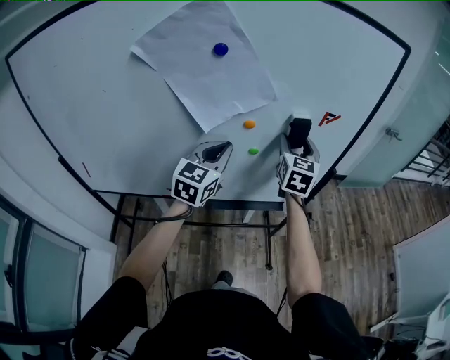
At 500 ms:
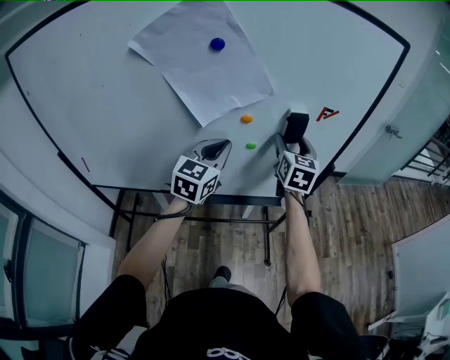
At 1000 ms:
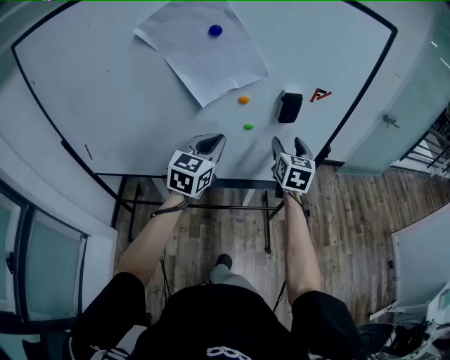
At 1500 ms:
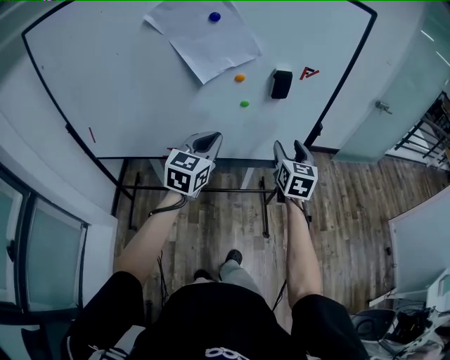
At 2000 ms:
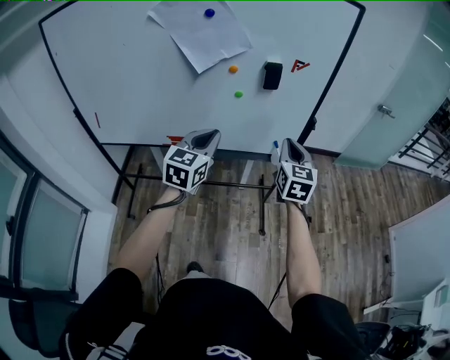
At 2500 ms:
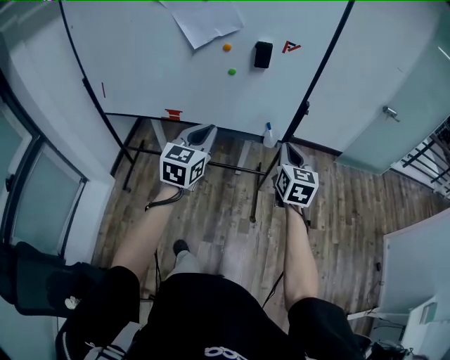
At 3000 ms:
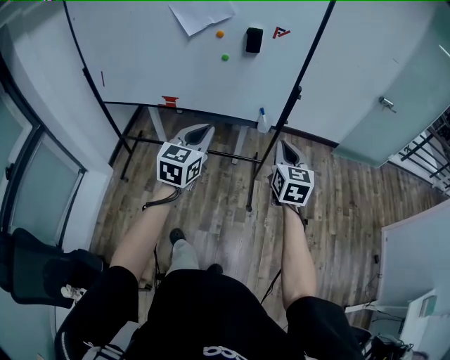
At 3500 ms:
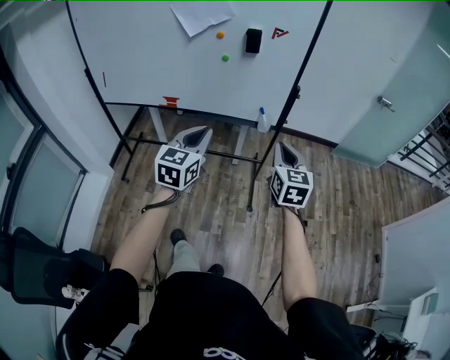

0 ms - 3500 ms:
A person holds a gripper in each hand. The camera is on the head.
0 ms - 2000 ms: The grippers both shift backward and to the right by roughly 25 cm. The right gripper closes.
2000 ms - 3500 ms: The two grippers go roughly 20 cm backward and to the right.

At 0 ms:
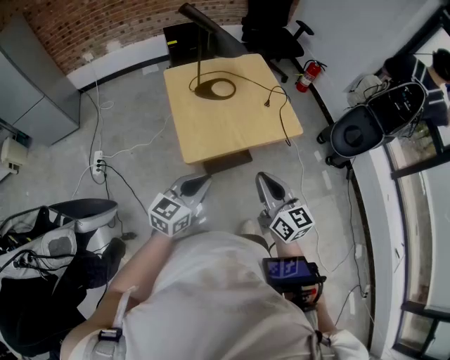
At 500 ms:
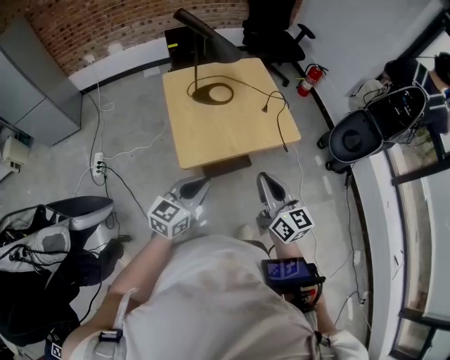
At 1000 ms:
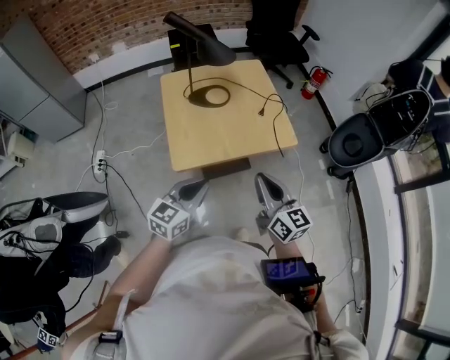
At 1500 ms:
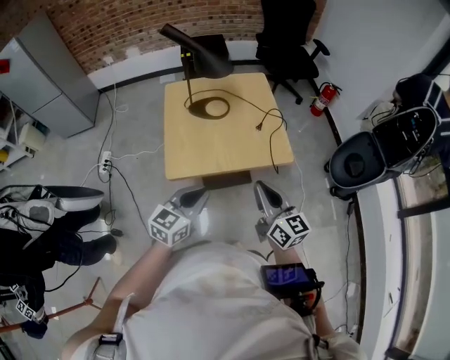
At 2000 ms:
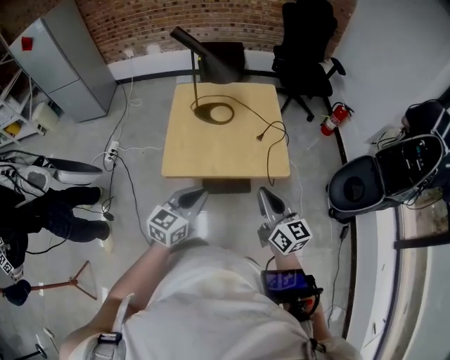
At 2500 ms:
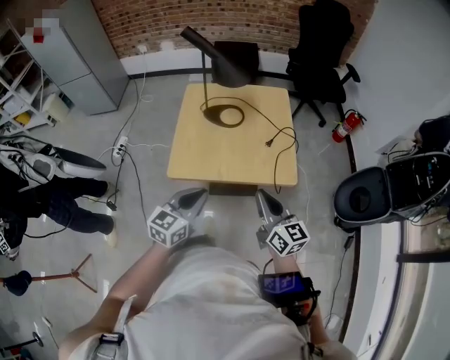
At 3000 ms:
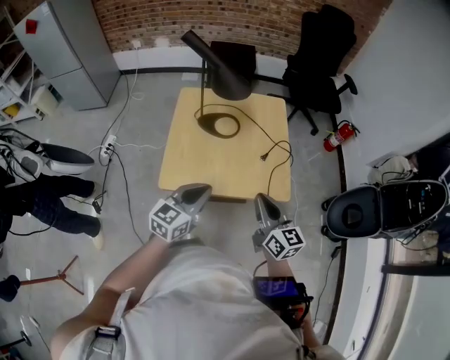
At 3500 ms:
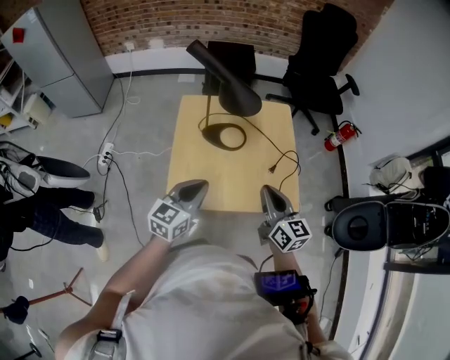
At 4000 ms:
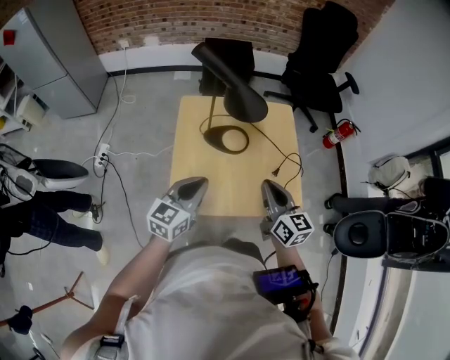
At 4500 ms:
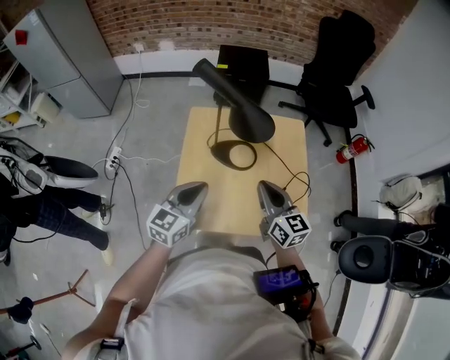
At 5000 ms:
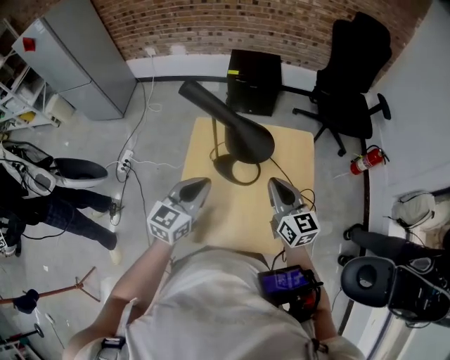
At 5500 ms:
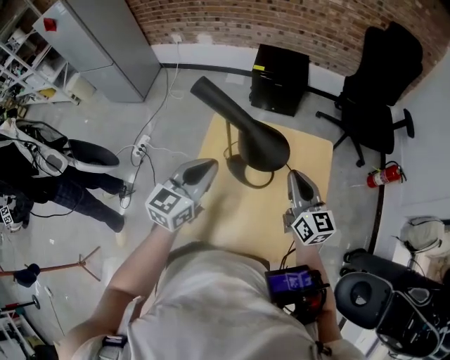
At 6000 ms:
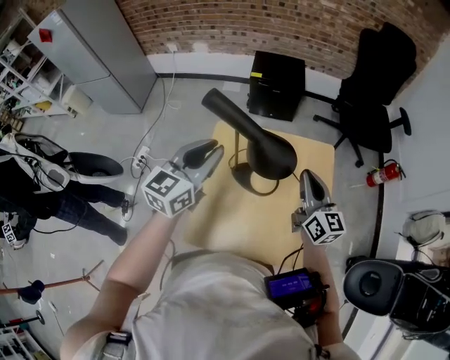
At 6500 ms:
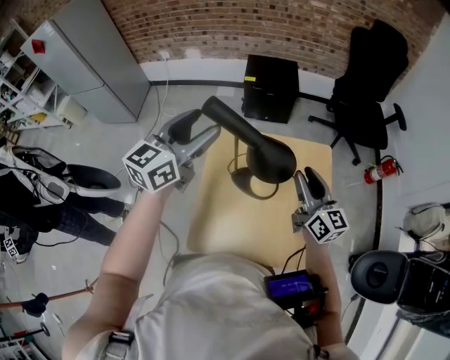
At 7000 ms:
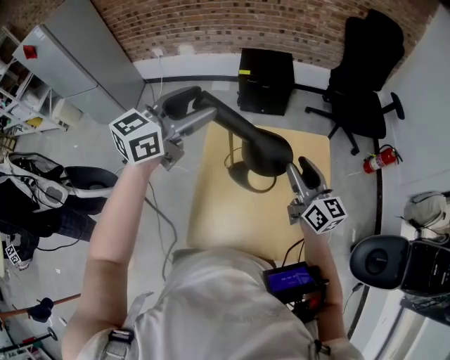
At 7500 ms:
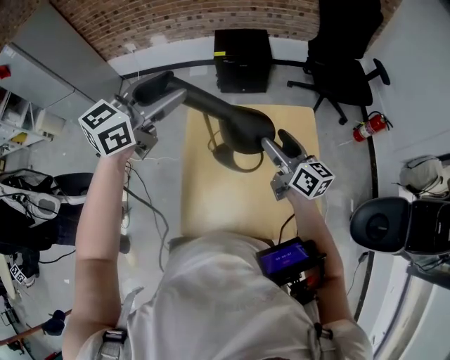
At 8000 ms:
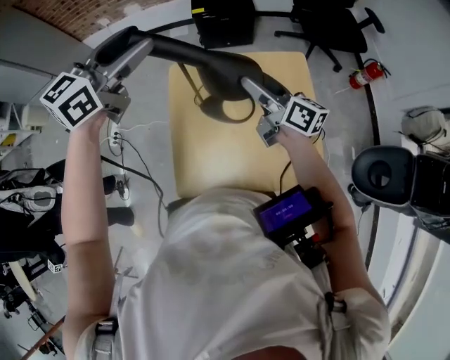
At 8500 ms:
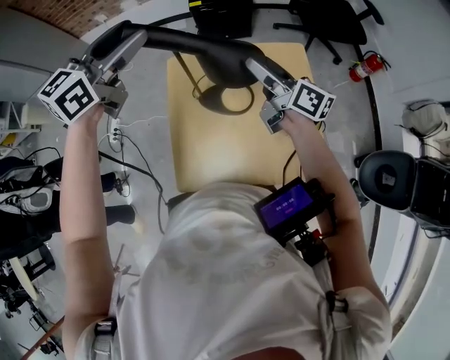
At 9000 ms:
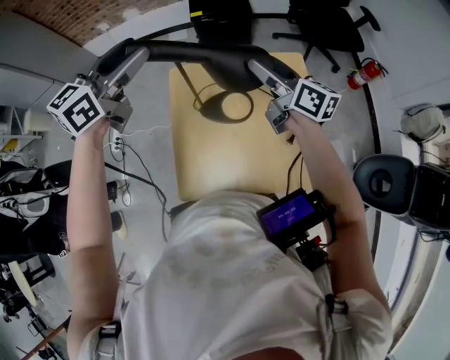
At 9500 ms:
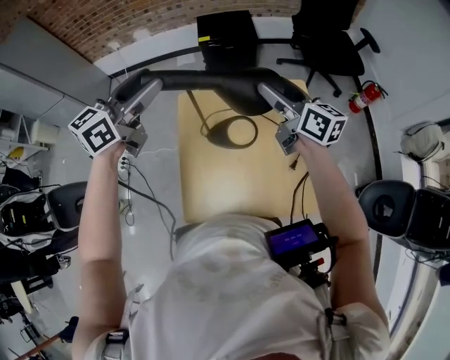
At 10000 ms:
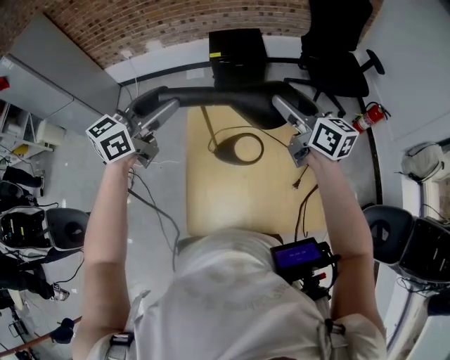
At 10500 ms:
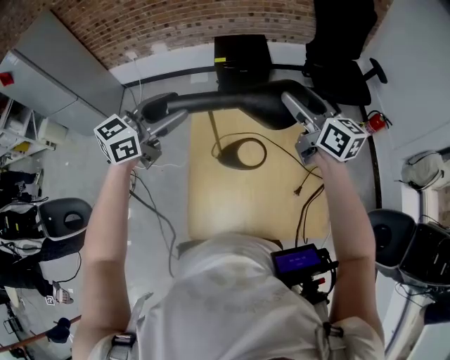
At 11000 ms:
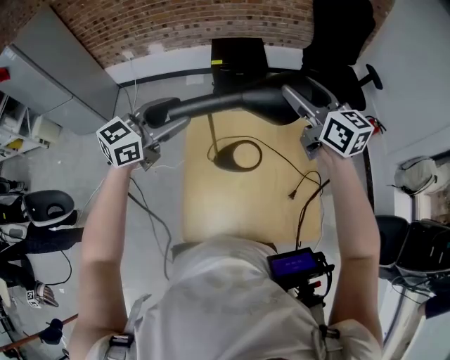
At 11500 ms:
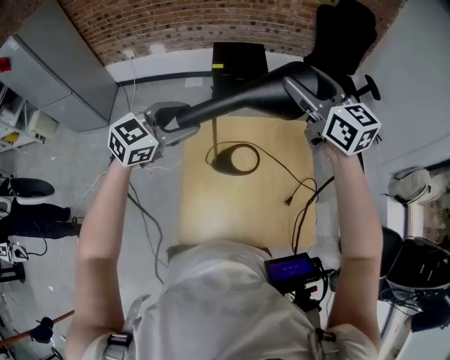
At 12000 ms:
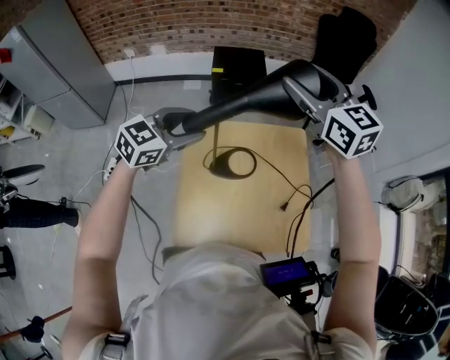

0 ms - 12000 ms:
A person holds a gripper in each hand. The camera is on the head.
0 ms - 2000 ms: The right gripper travels to the right and forward by approximately 20 cm; the left gripper moves to the right, approximately 15 cm.
2000 ms - 4000 ms: The two grippers go some 25 cm forward and to the left.
4000 ms - 6000 ms: The left gripper heads forward and upward, covering roughly 25 cm. The right gripper is displaced forward by roughly 20 cm.
6000 ms - 8000 ms: The left gripper travels upward and forward by about 15 cm, and opens its fingers; the right gripper goes some 5 cm to the left, turns by approximately 30 degrees, and opens up.
8000 ms - 10000 ms: The right gripper moves upward, about 10 cm; the left gripper ends up roughly 5 cm from where it was.
10000 ms - 12000 ms: The right gripper heads upward, covering approximately 15 cm, and rotates about 30 degrees, while the left gripper moves downward, approximately 5 cm, and changes its angle by some 20 degrees.

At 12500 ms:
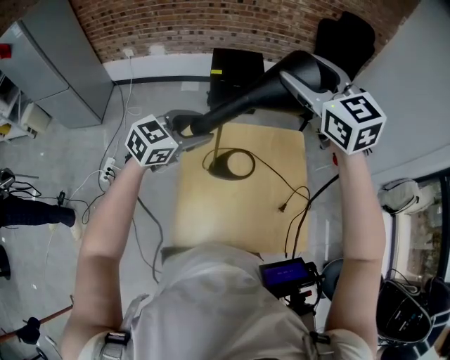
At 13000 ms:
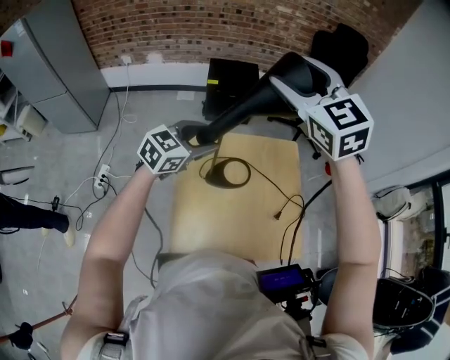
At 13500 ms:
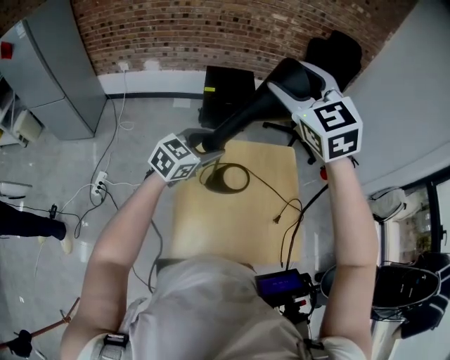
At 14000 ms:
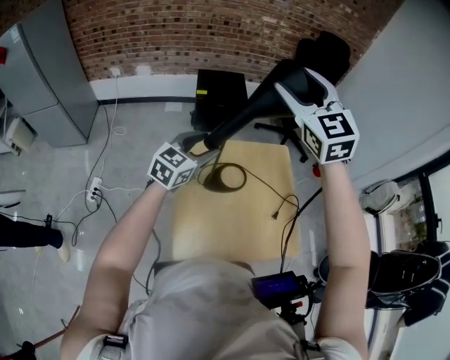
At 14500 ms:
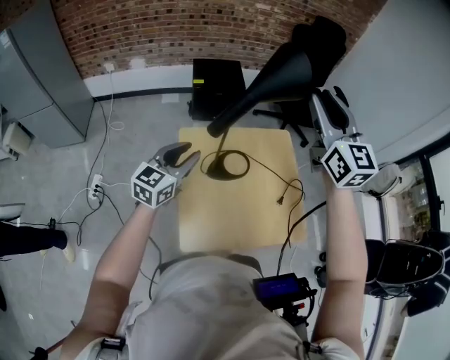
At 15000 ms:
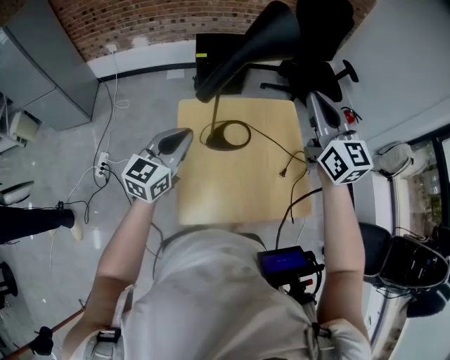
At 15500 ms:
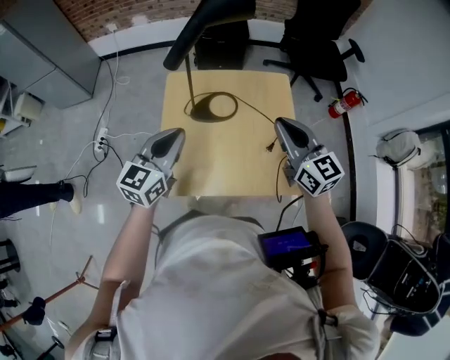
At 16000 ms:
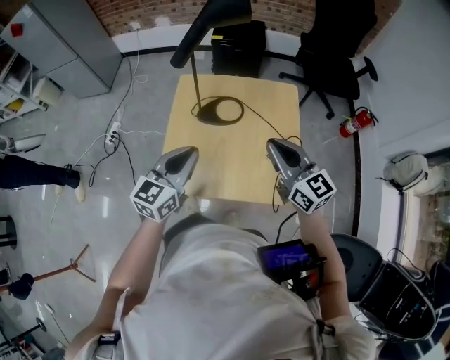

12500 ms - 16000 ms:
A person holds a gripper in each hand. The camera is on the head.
12500 ms - 14500 ms: The right gripper moves to the right and backward, approximately 10 cm, swivels roughly 30 degrees, and closes; the left gripper travels backward by some 5 cm, and changes its angle by some 20 degrees.
14500 ms - 16000 ms: The right gripper heads downward and backward, covering some 30 cm, rotates roughly 40 degrees, and closes. Meanwhile the left gripper heads backward and to the right, covering approximately 25 cm, and closes up.

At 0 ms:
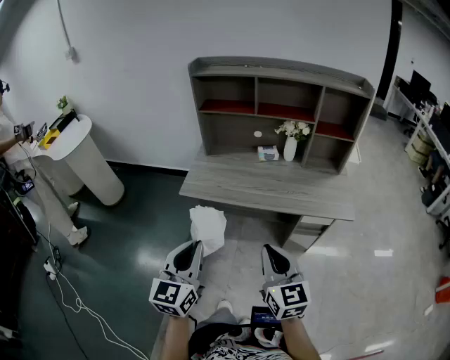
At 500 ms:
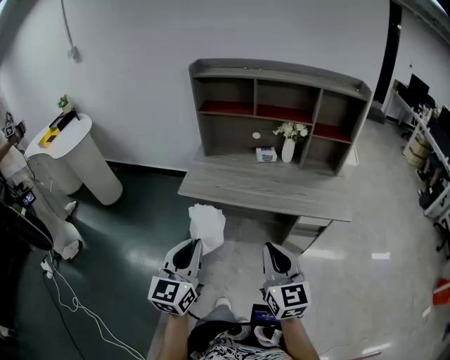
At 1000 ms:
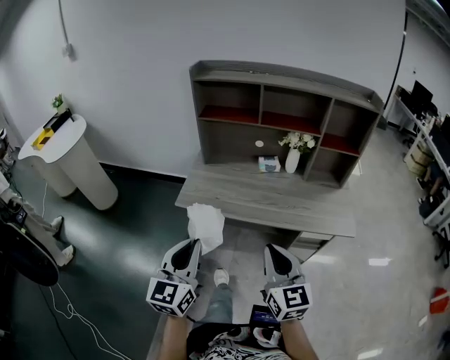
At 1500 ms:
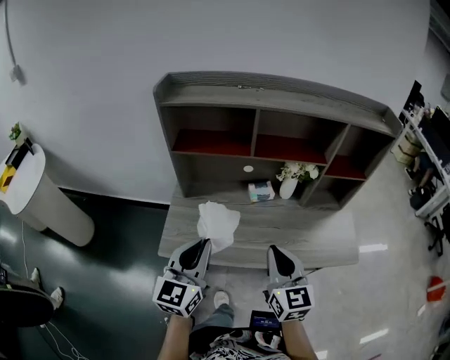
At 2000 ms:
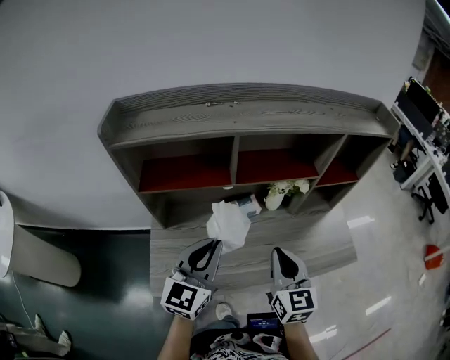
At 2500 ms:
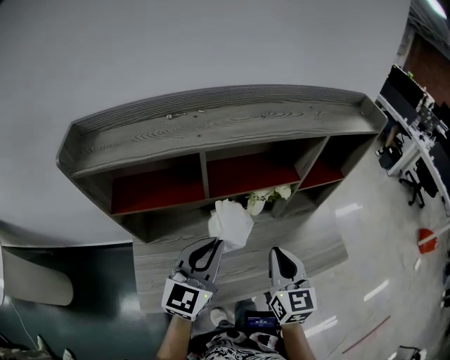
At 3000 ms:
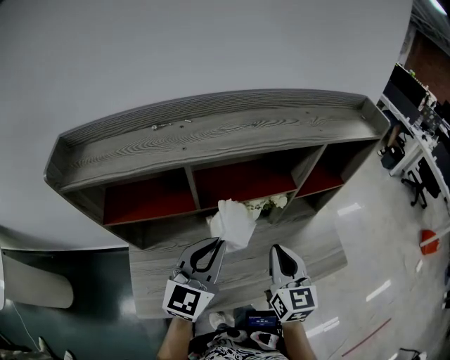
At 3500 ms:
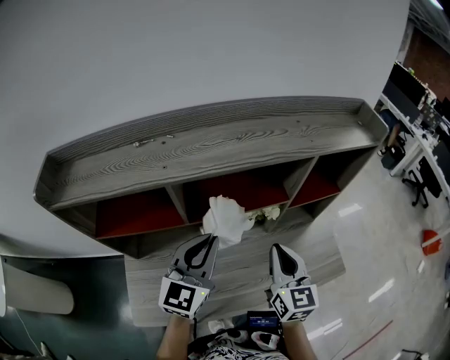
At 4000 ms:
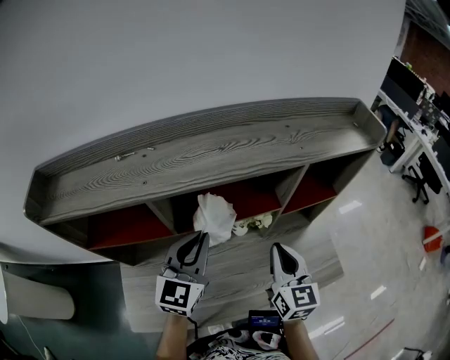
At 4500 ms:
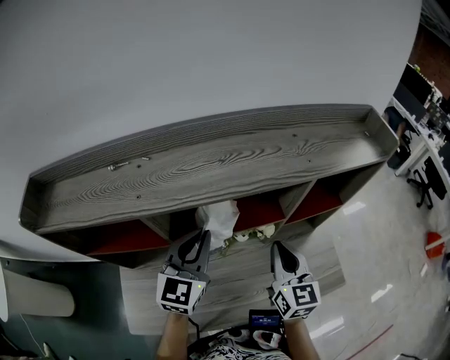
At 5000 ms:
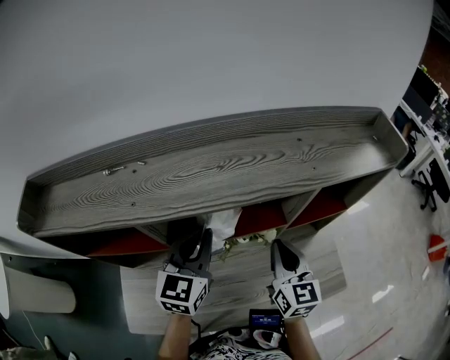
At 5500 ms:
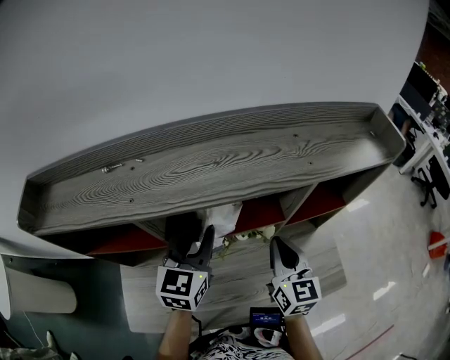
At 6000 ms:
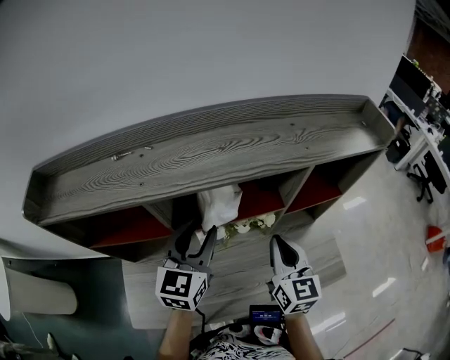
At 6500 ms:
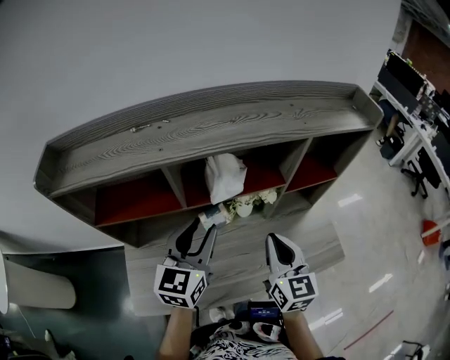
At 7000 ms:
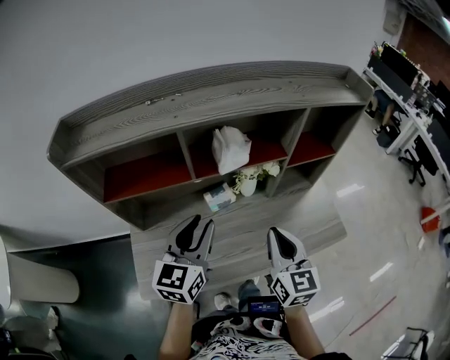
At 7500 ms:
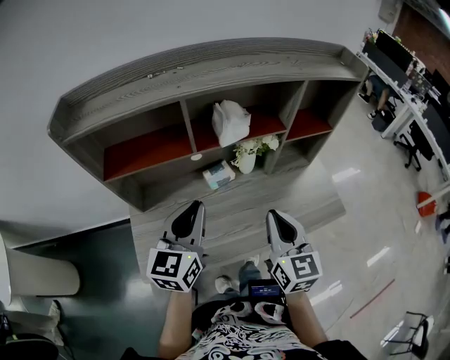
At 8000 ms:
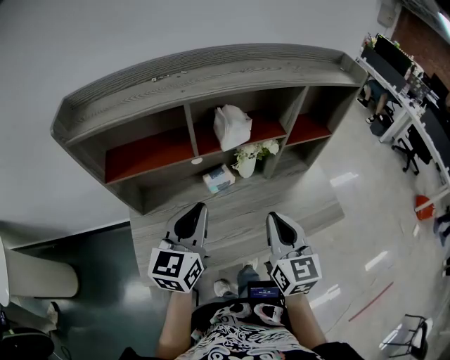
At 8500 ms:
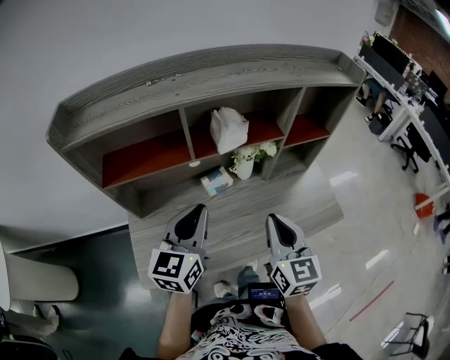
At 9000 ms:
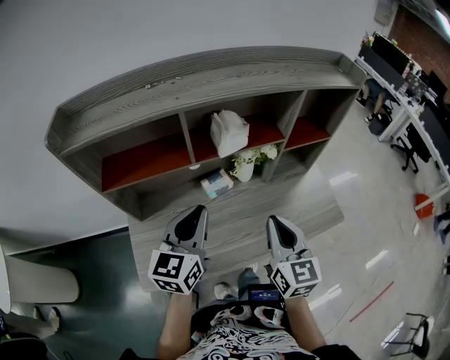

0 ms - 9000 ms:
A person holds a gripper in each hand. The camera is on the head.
0 ms - 2000 ms: Both grippers are carried approximately 50 cm. The right gripper turns by about 20 degrees. Meanwhile the left gripper rotates approximately 30 degrees.
2000 ms - 4500 ms: The left gripper is displaced forward by some 20 cm; the right gripper heads forward and to the right, covering roughly 25 cm.
4500 ms - 7000 ms: Both grippers move backward, roughly 15 cm. The left gripper opens up.
7000 ms - 9000 ms: The left gripper closes up.
